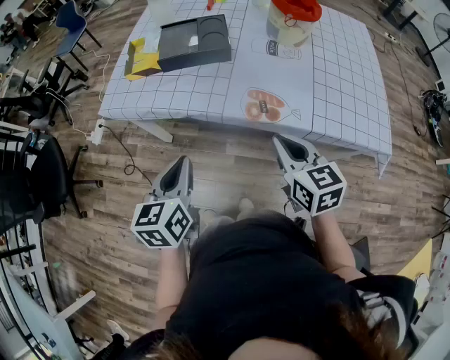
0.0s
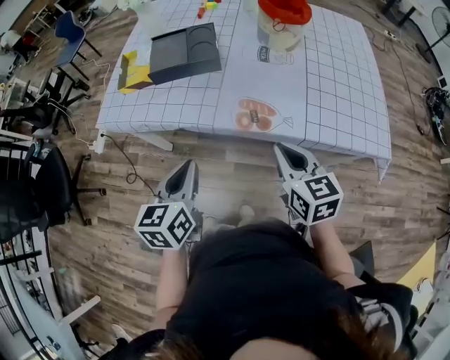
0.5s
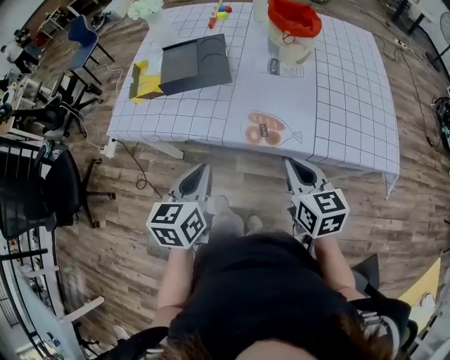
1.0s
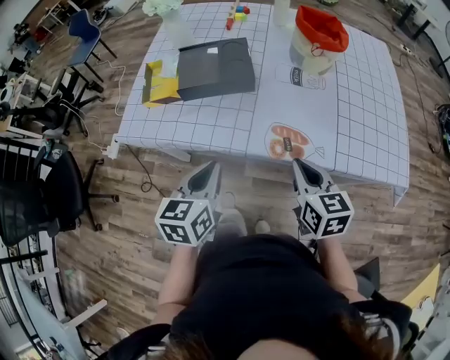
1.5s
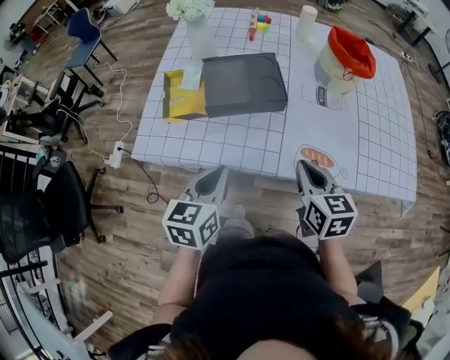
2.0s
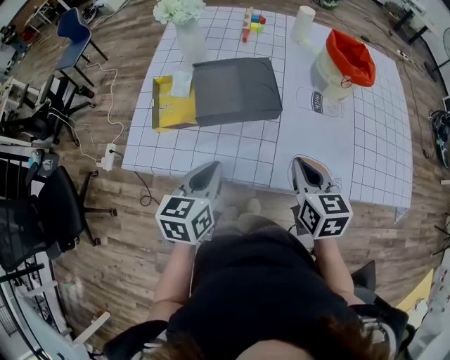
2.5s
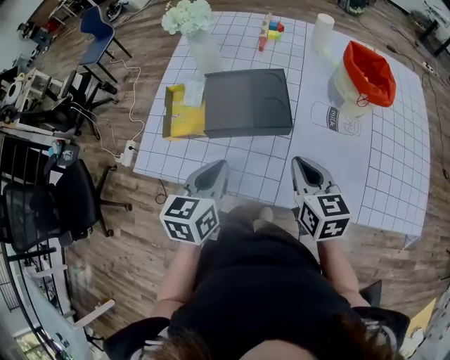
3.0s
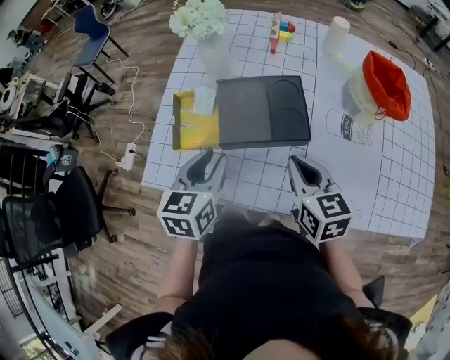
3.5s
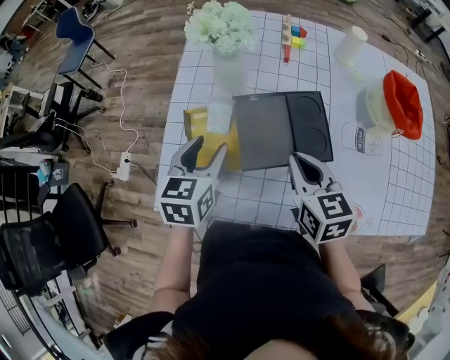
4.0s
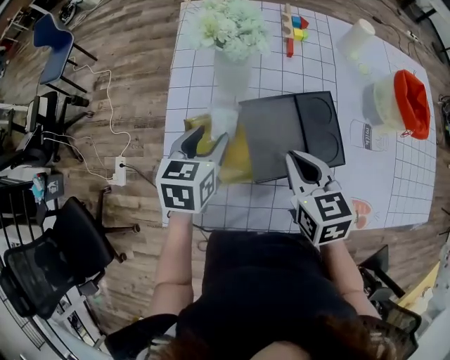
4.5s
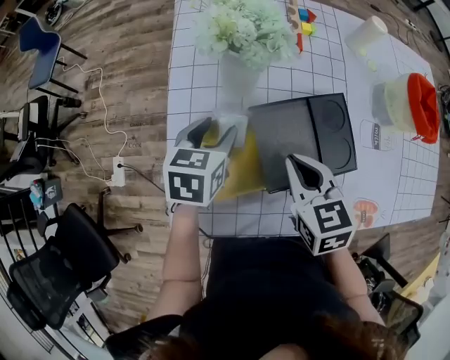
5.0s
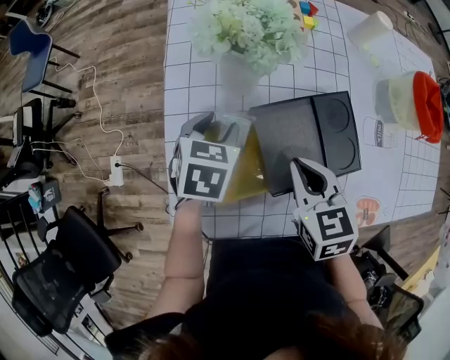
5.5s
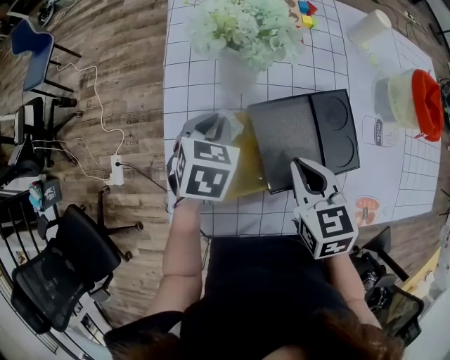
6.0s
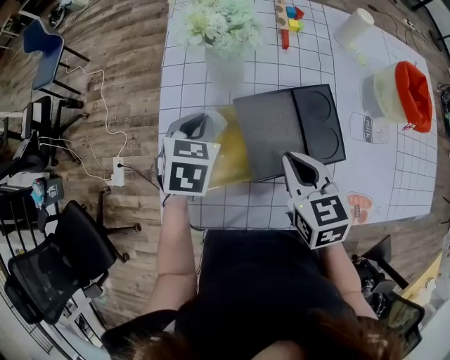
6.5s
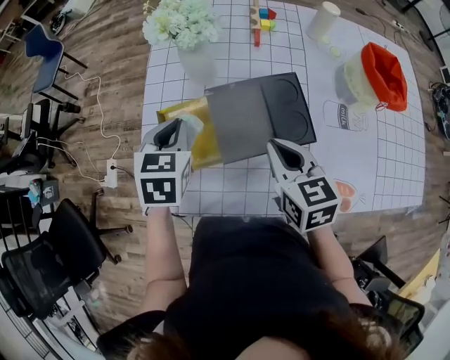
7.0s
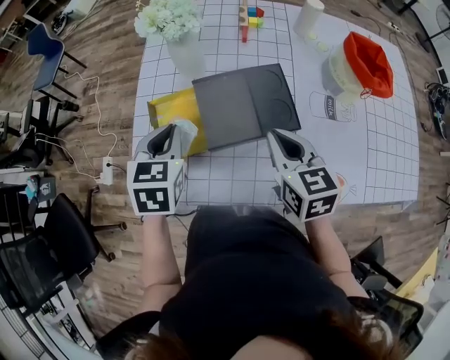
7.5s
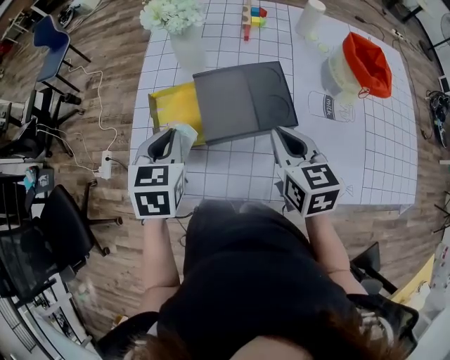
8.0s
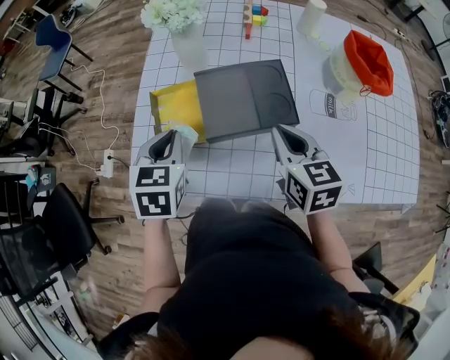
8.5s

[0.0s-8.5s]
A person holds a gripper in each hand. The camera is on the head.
0.0s to 2.0s: The left gripper heads forward, covering approximately 15 cm, while the right gripper goes approximately 15 cm forward and to the left.
2.0s to 4.0s: The grippers both shift forward and to the left by some 30 cm. The left gripper opens up.
4.0s to 6.5s: The left gripper travels forward and downward by roughly 10 cm, rotates approximately 20 degrees, and closes up.
6.5s to 8.5s: The left gripper is displaced backward and upward by some 15 cm, while the right gripper goes some 10 cm to the right and backward.

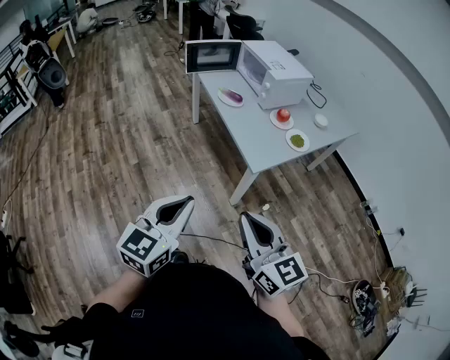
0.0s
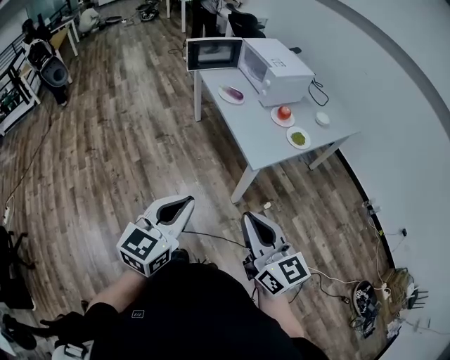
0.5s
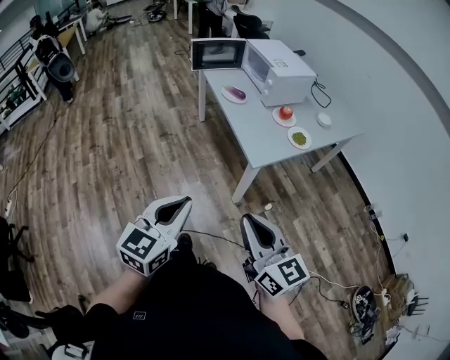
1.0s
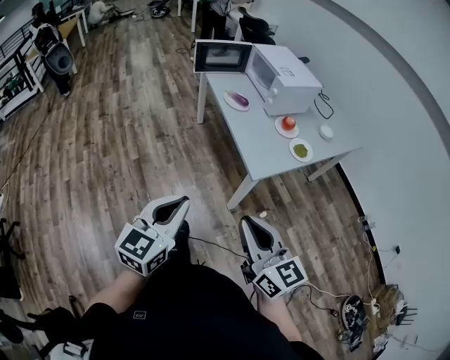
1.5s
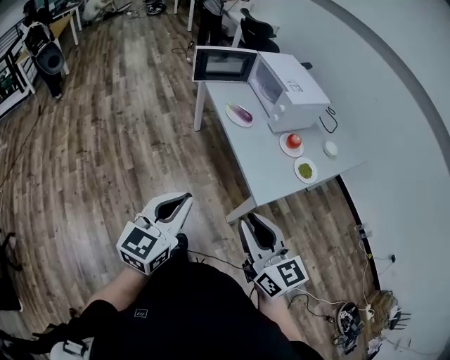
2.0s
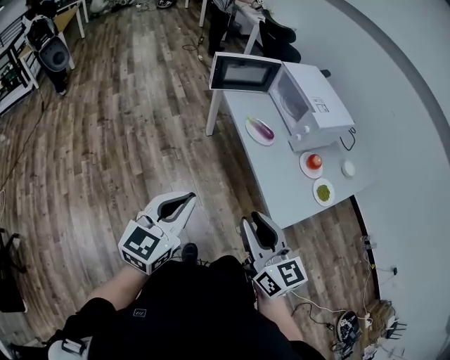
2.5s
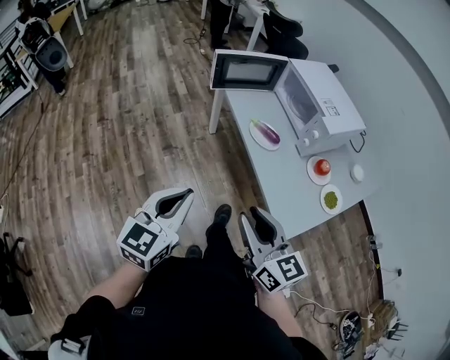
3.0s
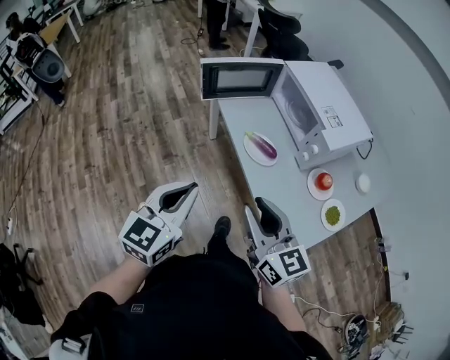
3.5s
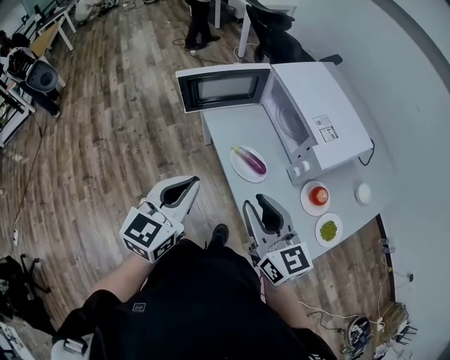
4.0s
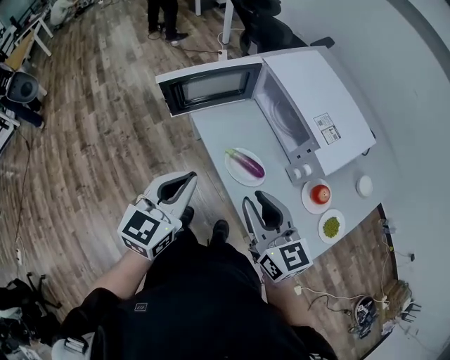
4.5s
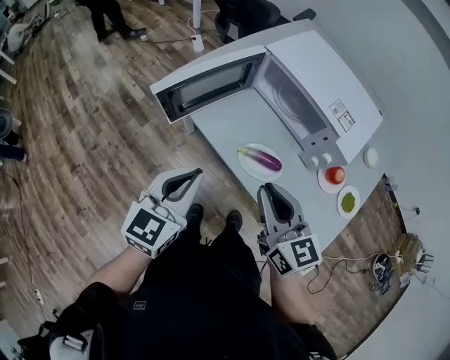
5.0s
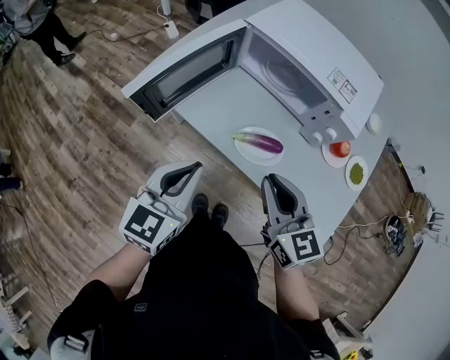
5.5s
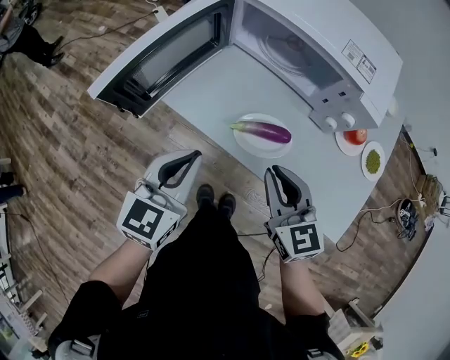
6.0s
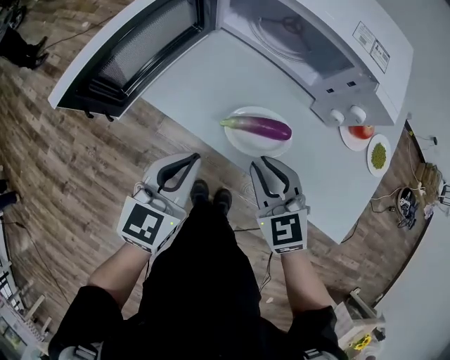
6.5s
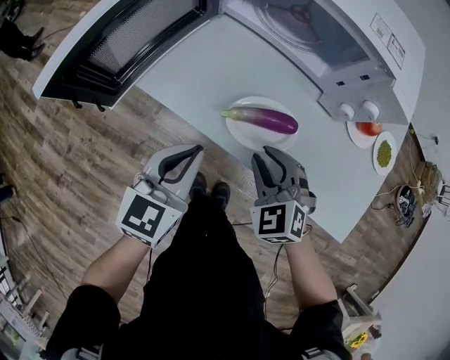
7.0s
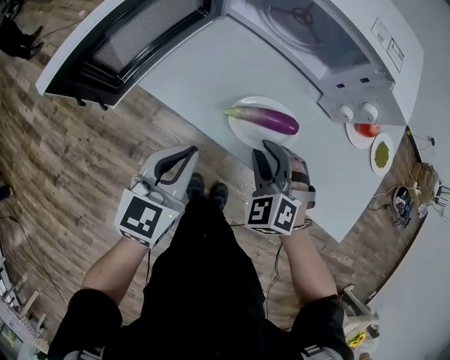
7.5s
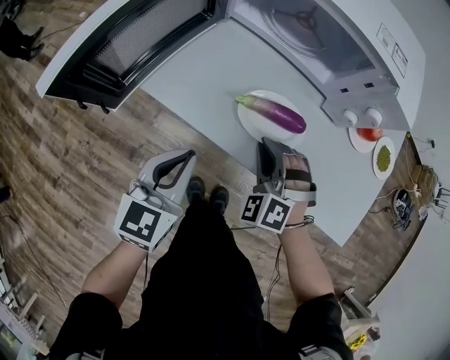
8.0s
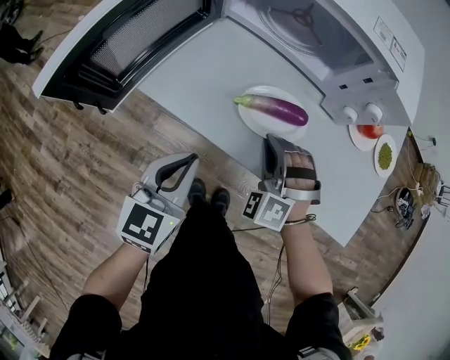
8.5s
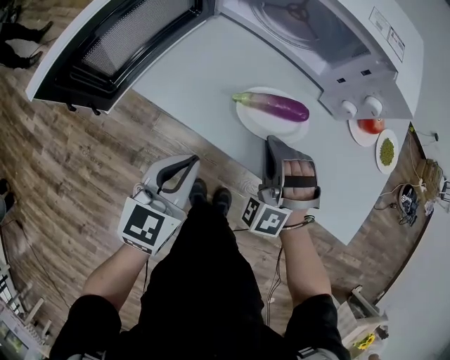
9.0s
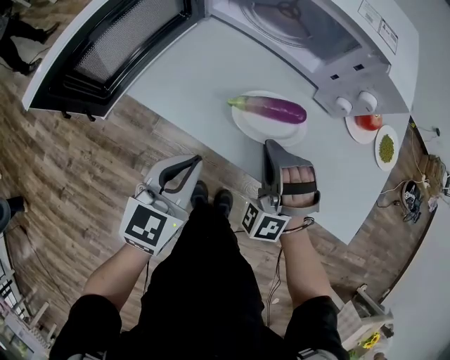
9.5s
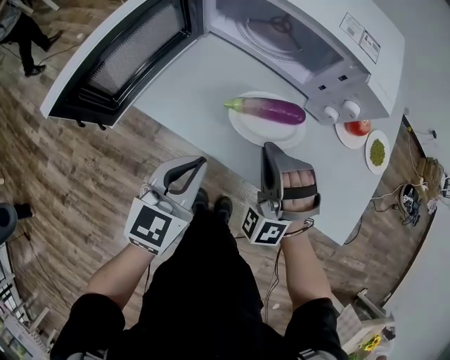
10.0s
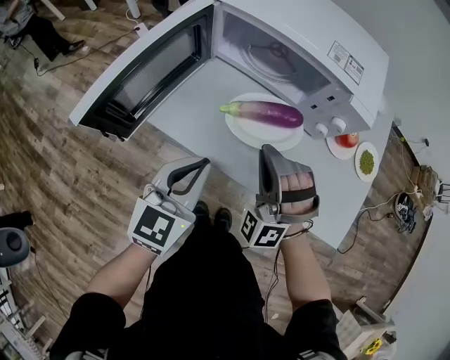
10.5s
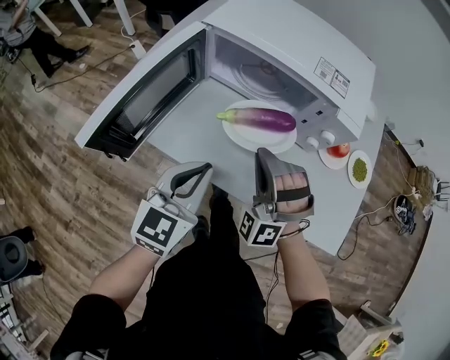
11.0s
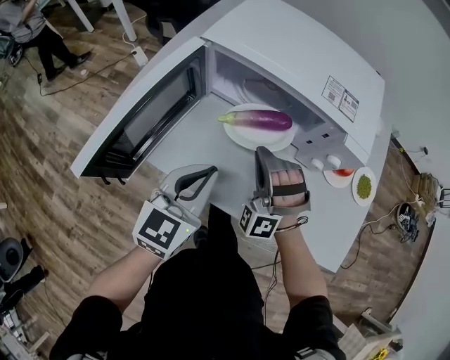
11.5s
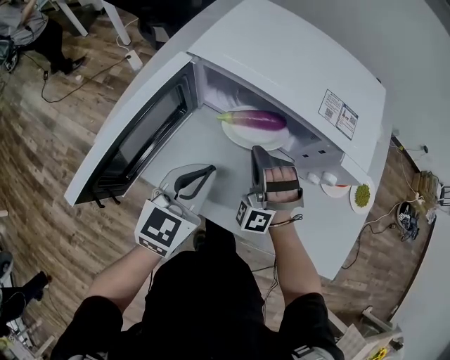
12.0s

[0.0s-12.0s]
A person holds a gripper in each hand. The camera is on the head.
0.0s to 2.0s: Both grippers move forward, roughly 15 cm.
2.0s to 4.0s: The two grippers travel together, forward, approximately 40 cm.
4.0s to 6.0s: The right gripper shifts approximately 15 cm downward, and turns by approximately 40 degrees; the left gripper moves approximately 25 cm, and changes its angle by roughly 30 degrees.
6.0s to 8.0s: The grippers both shift downward by about 15 cm. The right gripper rotates around the line of its fingers by about 60 degrees, counterclockwise from behind.
8.0s to 10.0s: The left gripper changes place by roughly 5 cm. Meanwhile the right gripper moves upward, approximately 10 cm, and rotates about 30 degrees.
10.0s to 12.0s: The right gripper moves forward and to the left, approximately 15 cm; the left gripper heads forward and upward, covering about 15 cm.

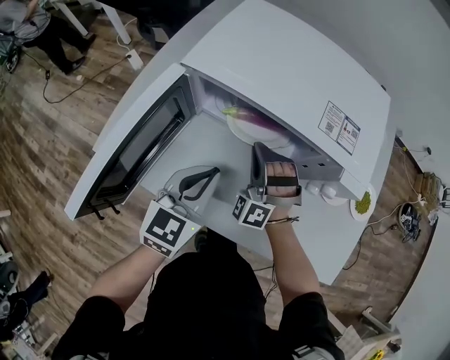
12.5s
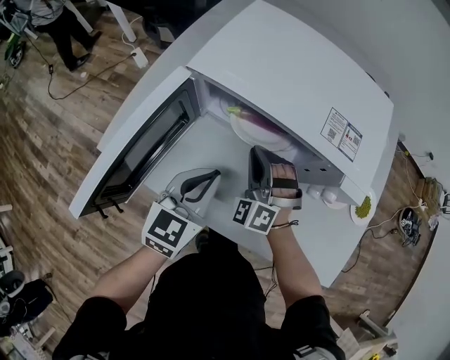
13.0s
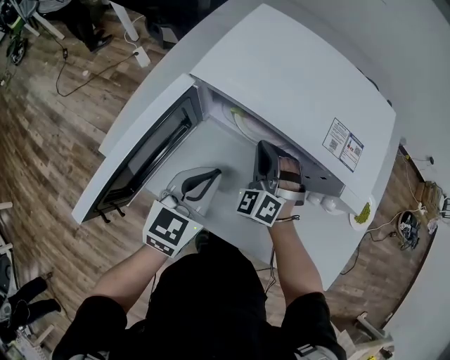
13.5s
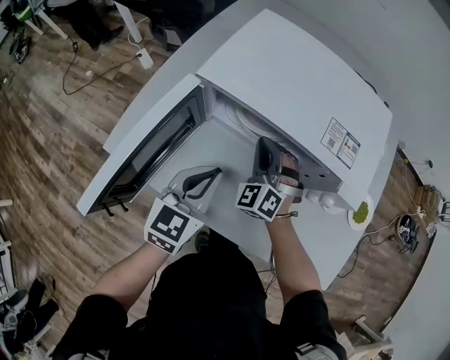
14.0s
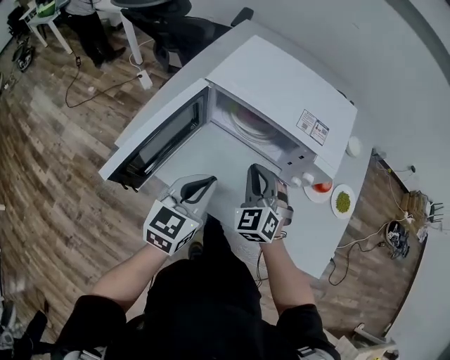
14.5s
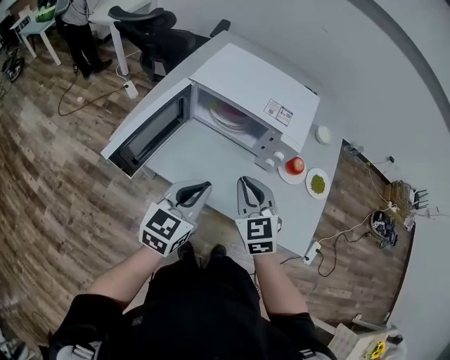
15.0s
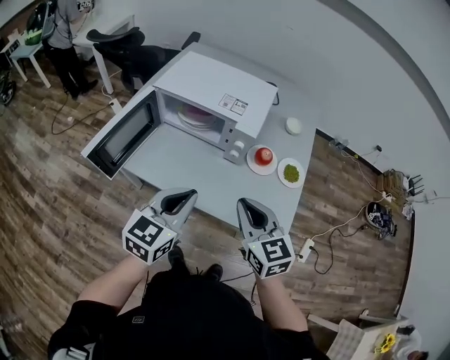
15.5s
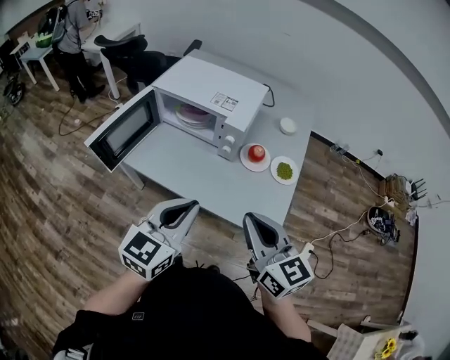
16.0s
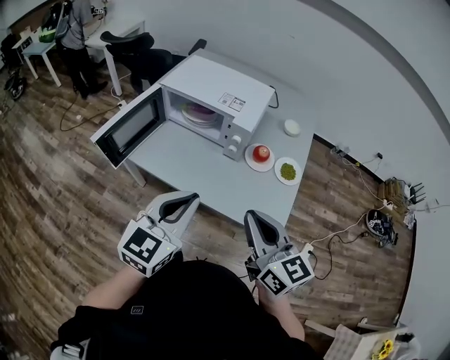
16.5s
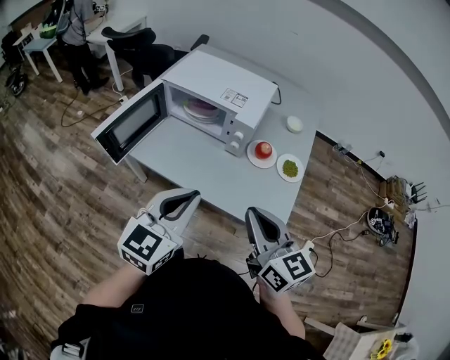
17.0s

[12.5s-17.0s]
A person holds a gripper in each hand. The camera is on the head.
12.5s to 14.5s: The left gripper moves backward and upward, roughly 10 cm. Meanwhile the right gripper goes about 15 cm upward and backward, and changes its angle by some 40 degrees.
14.5s to 17.0s: The two grippers go approximately 35 cm backward, to the right and upward. The right gripper rolls clockwise, seen from behind, by some 50 degrees.

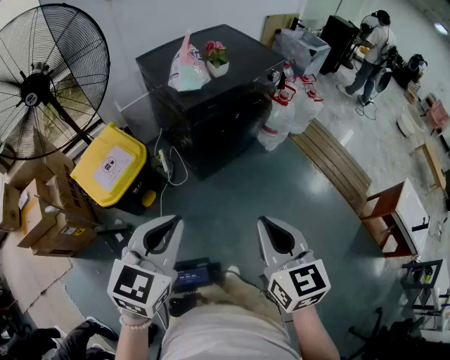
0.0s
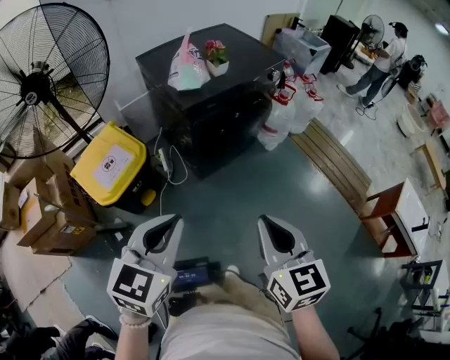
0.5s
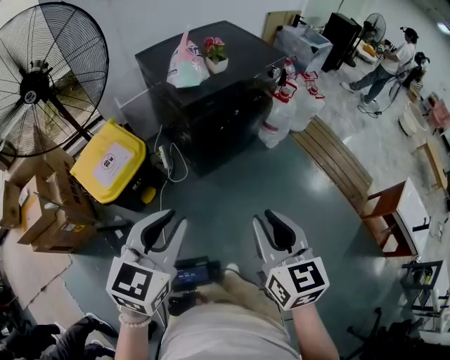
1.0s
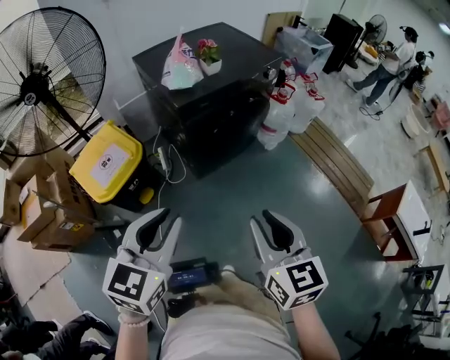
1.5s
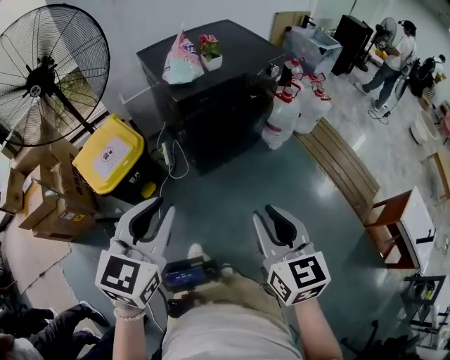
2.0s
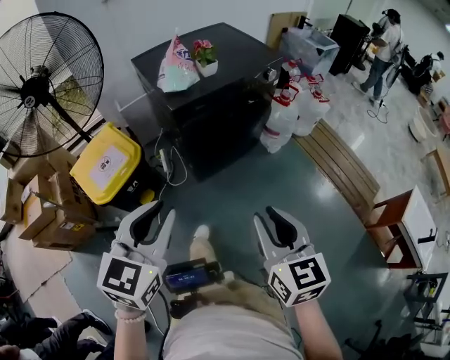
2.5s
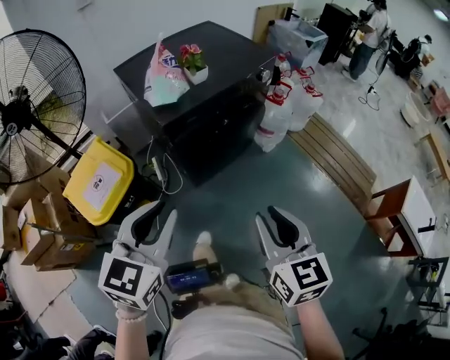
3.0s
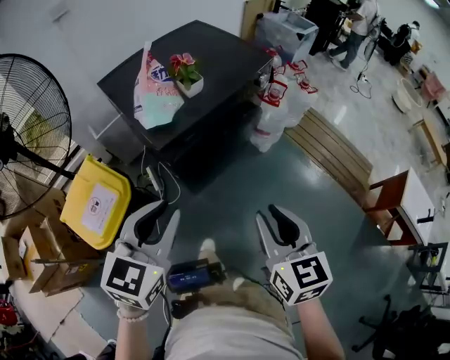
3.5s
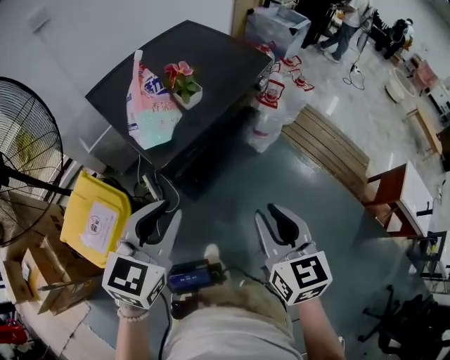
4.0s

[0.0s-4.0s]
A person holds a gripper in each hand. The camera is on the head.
0.0s to 2.0s: The grippers both shift to the right by about 5 cm. The right gripper opens up.
2.0s to 4.0s: Both grippers travel together forward, about 25 cm.
